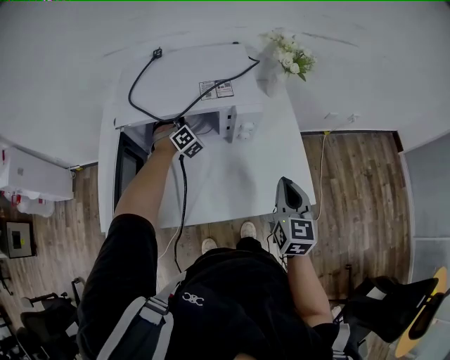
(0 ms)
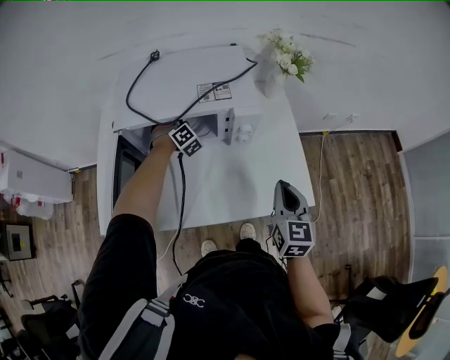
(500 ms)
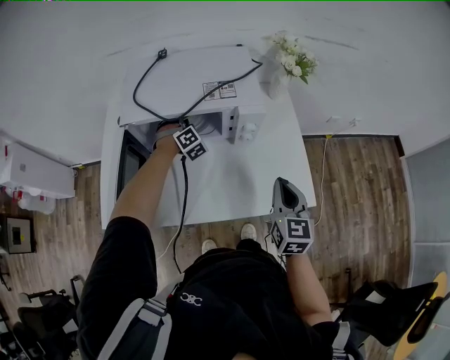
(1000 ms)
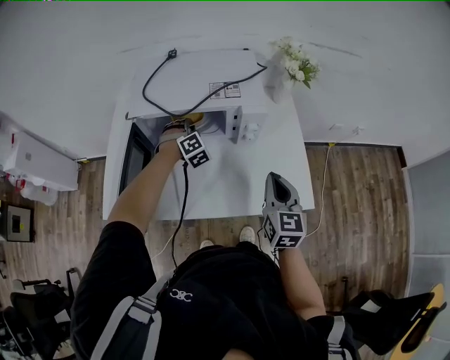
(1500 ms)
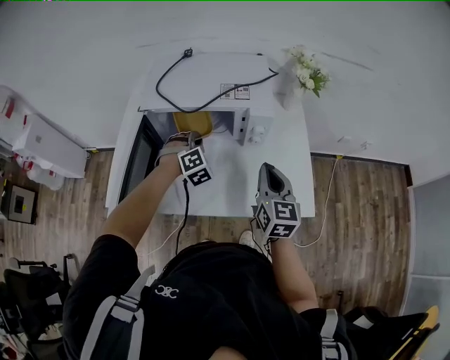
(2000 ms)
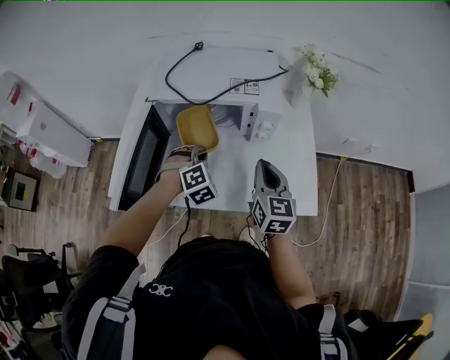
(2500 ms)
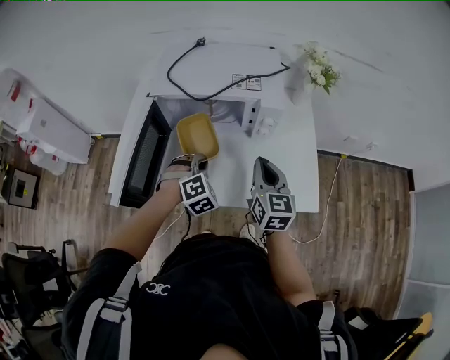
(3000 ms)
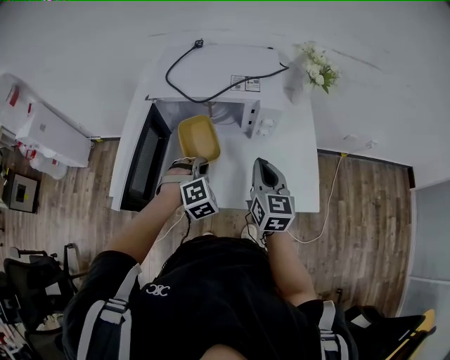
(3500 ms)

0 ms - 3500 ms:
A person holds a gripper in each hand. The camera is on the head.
0 ms - 2000 ms: The right gripper heads to the left, covering roughly 5 cm; the left gripper shifts approximately 15 cm backward, and closes up.
2000 ms - 3500 ms: The left gripper travels backward by some 10 cm.

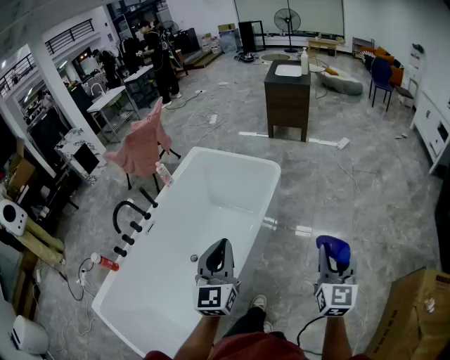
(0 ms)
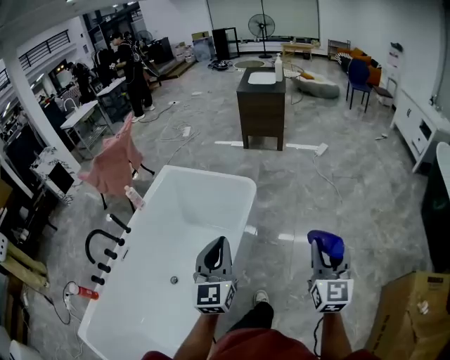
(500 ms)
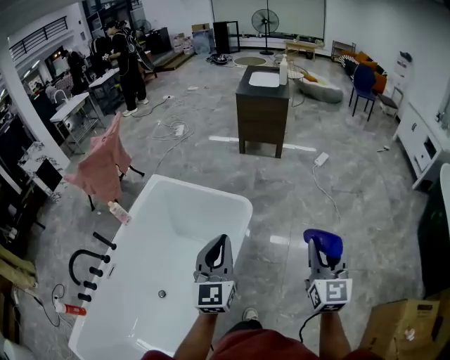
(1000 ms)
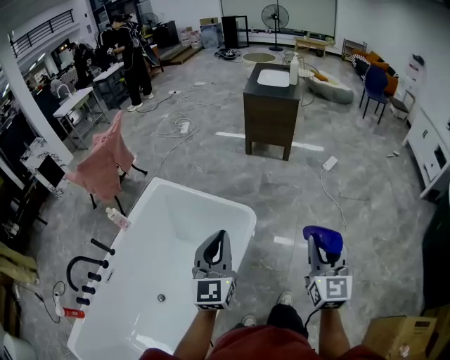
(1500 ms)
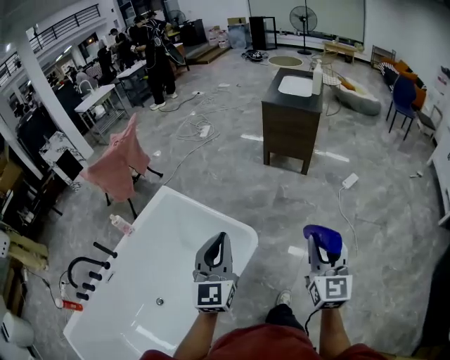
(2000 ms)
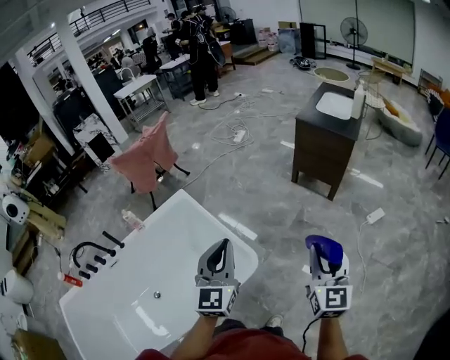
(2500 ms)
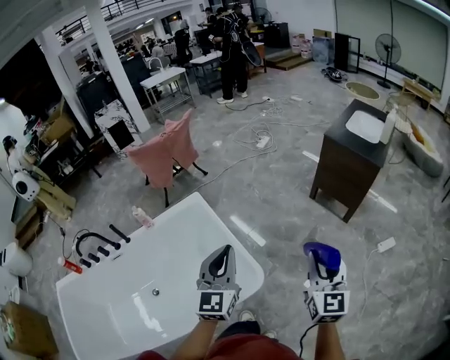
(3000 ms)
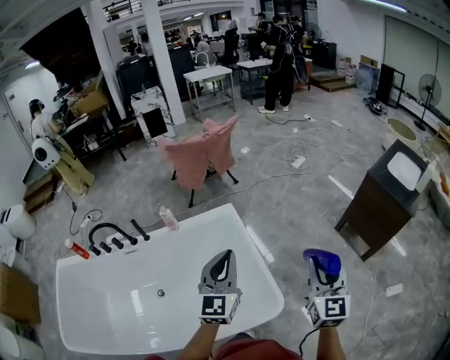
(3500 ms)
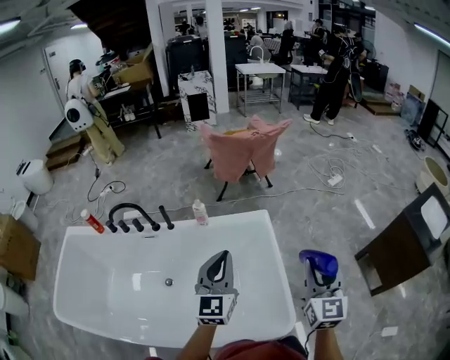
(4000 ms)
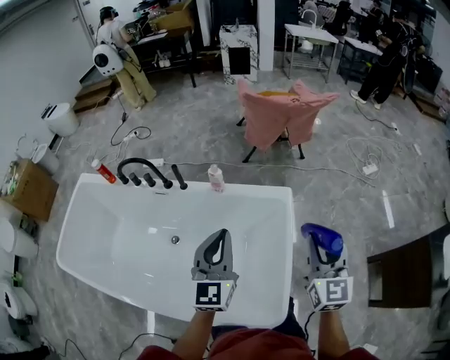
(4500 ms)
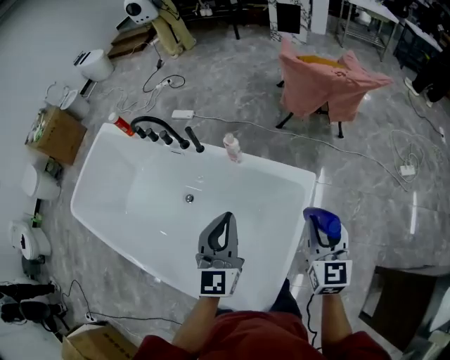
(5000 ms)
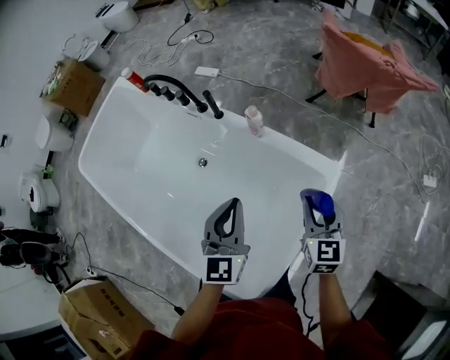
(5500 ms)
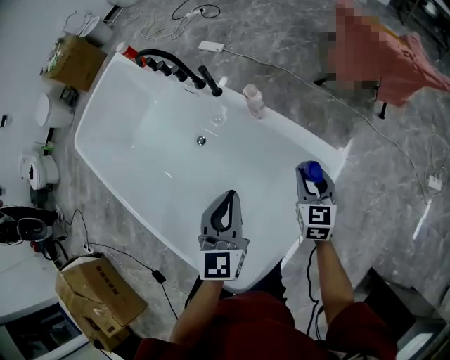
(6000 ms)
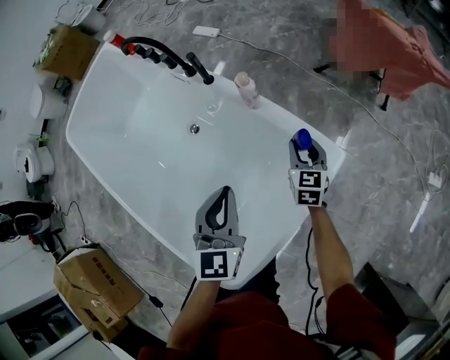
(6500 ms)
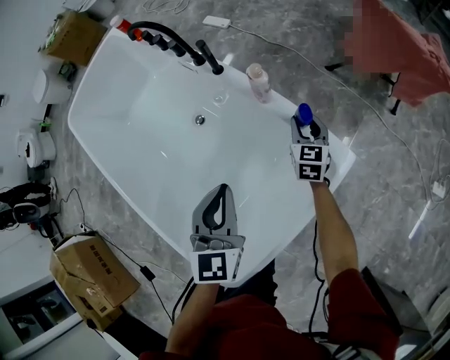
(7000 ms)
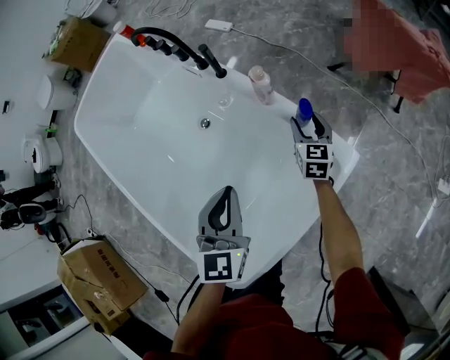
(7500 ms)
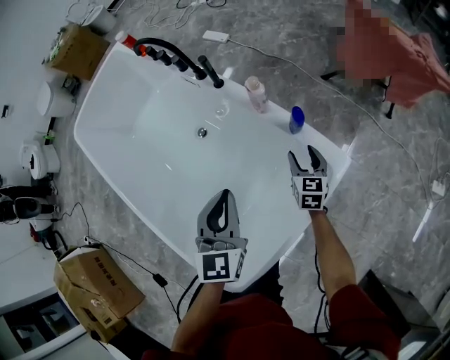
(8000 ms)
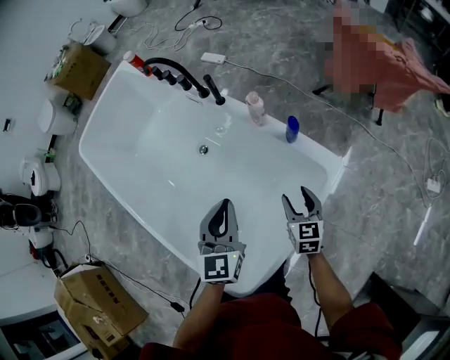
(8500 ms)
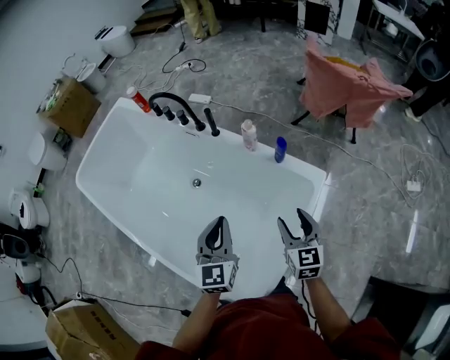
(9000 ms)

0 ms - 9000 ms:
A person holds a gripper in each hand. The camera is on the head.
0 ms - 2000 ms: The pair of grippers is taken forward, roughly 60 cm.
2000 ms - 4500 ms: The right gripper changes place by about 60 cm, and turns by approximately 70 degrees, while the left gripper changes place by about 40 cm, and turns by some 60 degrees.
4500 ms - 7000 ms: The right gripper heads downward, covering approximately 40 cm, and swivels some 40 degrees. The left gripper goes some 20 cm downward, and rotates some 40 degrees.
7000 ms - 9000 ms: The left gripper goes approximately 15 cm to the left, backward and upward, while the right gripper travels backward and upward by approximately 35 cm, and opens.

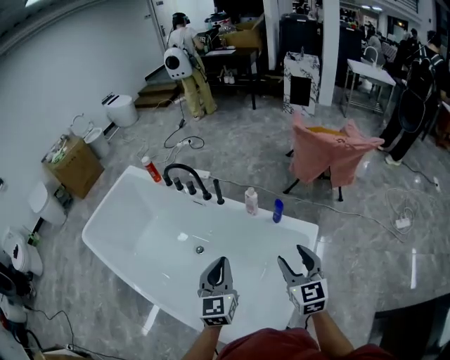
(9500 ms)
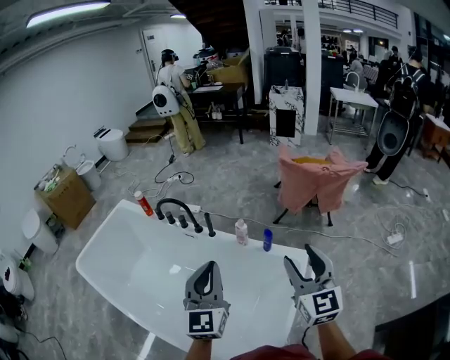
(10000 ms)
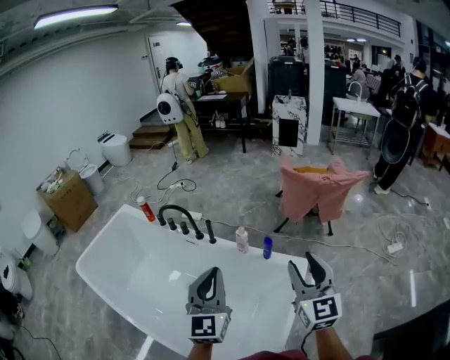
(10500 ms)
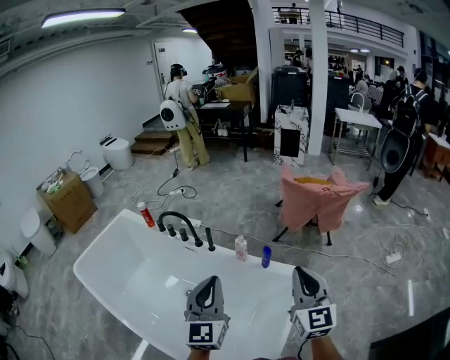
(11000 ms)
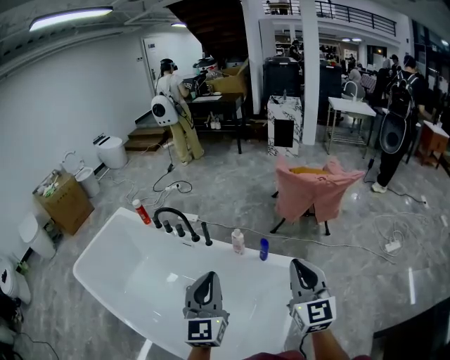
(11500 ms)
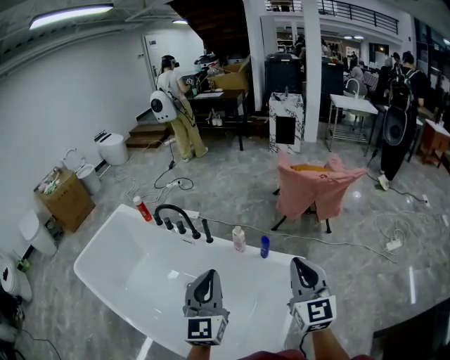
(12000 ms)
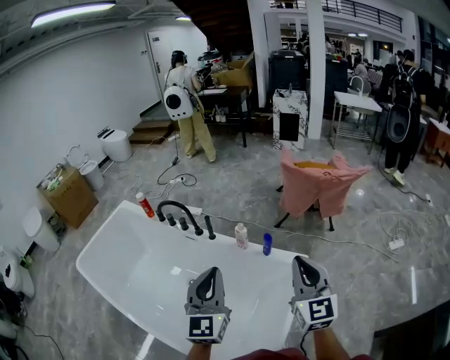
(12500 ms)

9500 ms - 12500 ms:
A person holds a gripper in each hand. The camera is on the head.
9500 ms - 11000 ms: Both grippers move upward, approximately 15 cm. The right gripper closes.
11000 ms - 12500 ms: The two grippers keep their place.

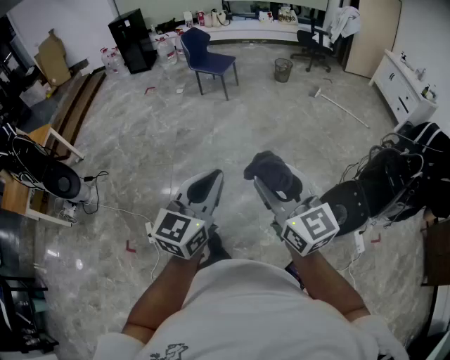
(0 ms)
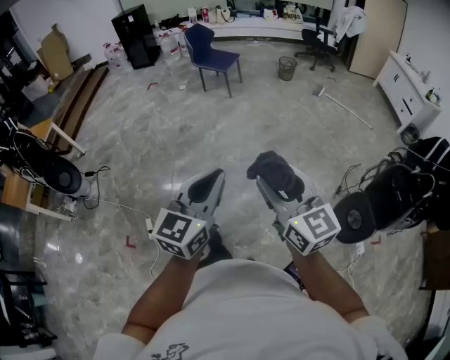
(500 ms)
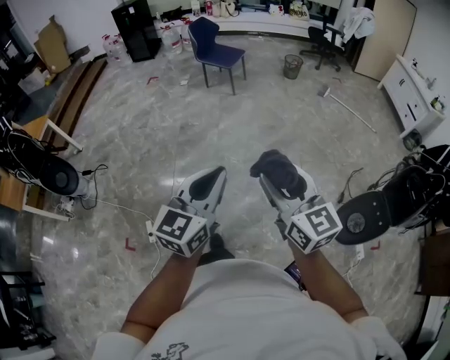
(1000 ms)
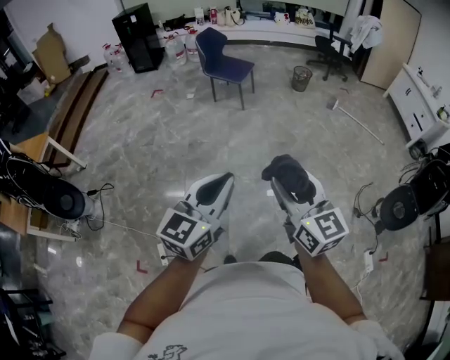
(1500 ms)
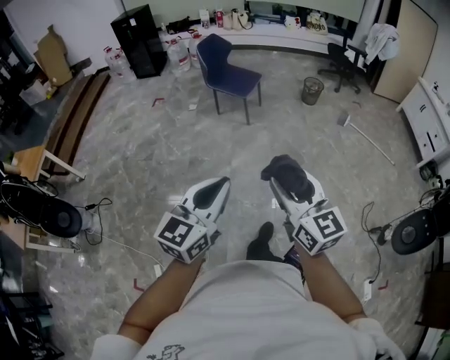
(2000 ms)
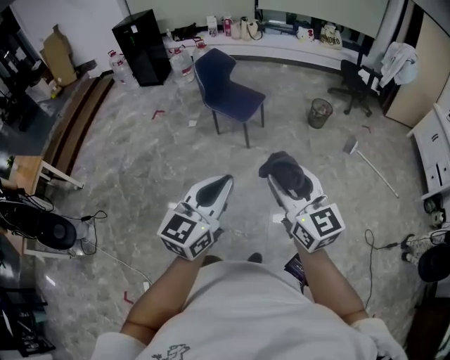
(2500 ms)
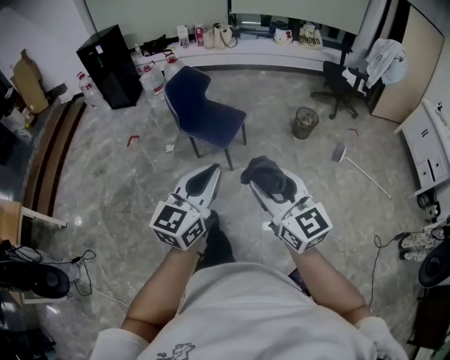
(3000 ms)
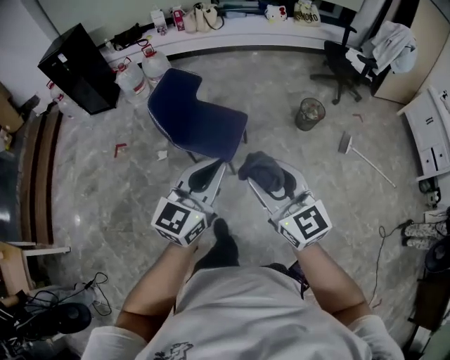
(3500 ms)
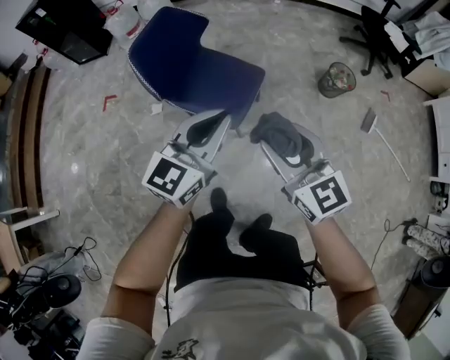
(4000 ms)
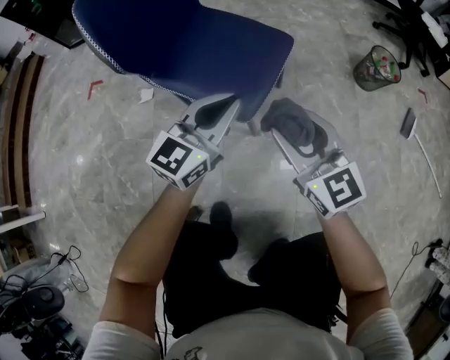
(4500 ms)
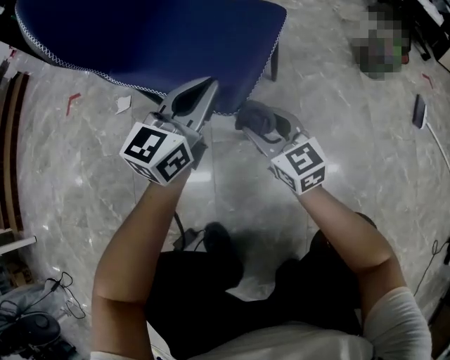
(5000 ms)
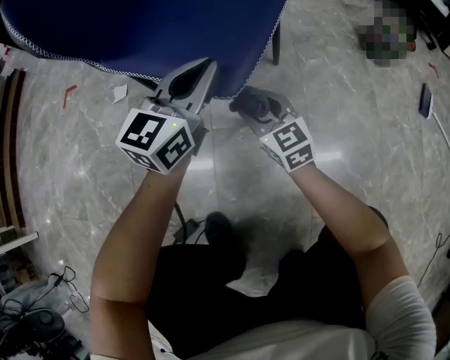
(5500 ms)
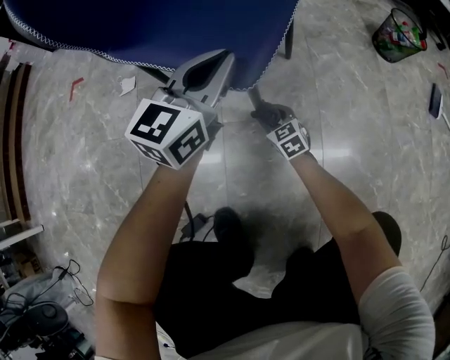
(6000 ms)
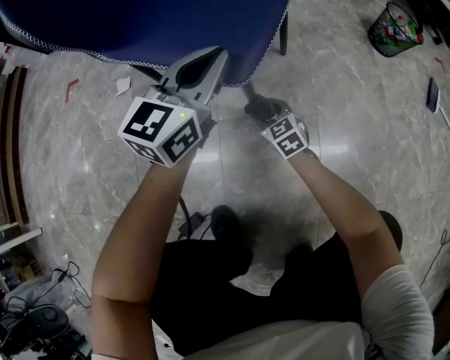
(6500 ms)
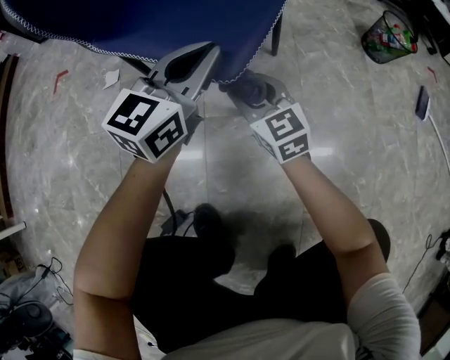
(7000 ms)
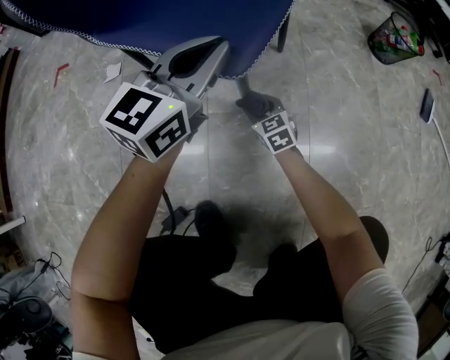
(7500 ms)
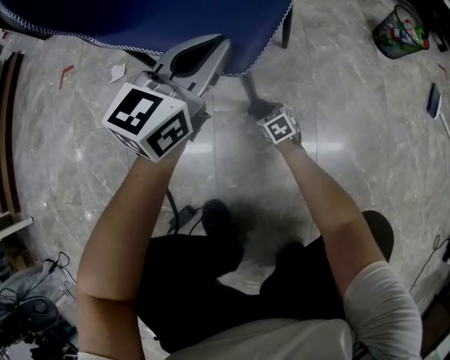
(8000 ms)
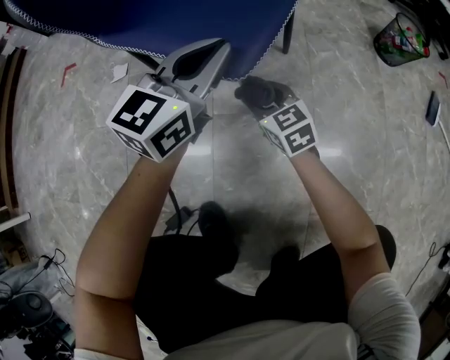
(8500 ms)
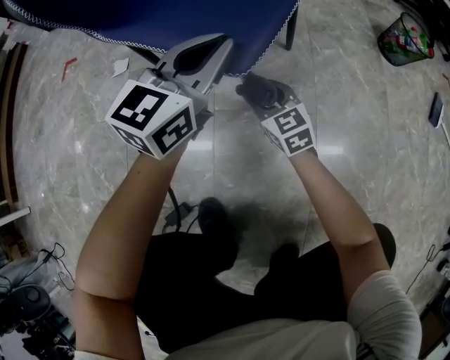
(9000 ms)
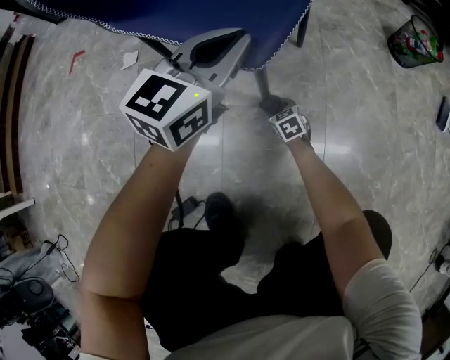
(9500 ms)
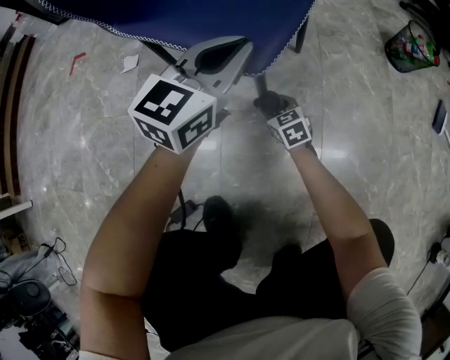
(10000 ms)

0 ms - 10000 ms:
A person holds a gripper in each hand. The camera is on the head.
0 ms - 2000 ms: The two grippers travel together, forward, roughly 50 cm.
2000 ms - 4000 ms: The two grippers travel together, forward, roughly 1 m.
4000 ms - 6000 ms: The right gripper heads downward, covering some 90 cm, and rotates about 30 degrees. Meanwhile the left gripper heads downward, covering approximately 60 cm.
6000 ms - 8000 ms: The right gripper travels upward and back again, approximately 20 cm each way.
8000 ms - 10000 ms: The right gripper moves up and down over roughly 25 cm, changing direction 2 times.

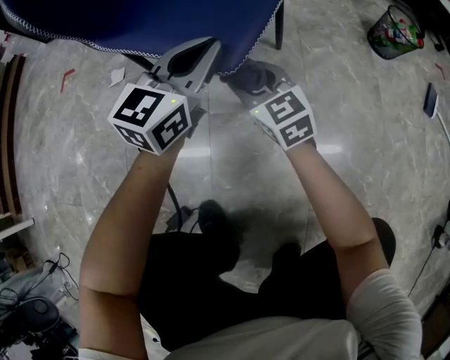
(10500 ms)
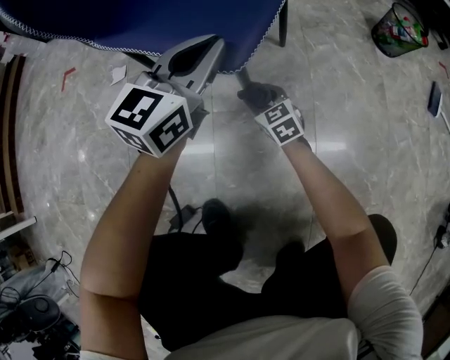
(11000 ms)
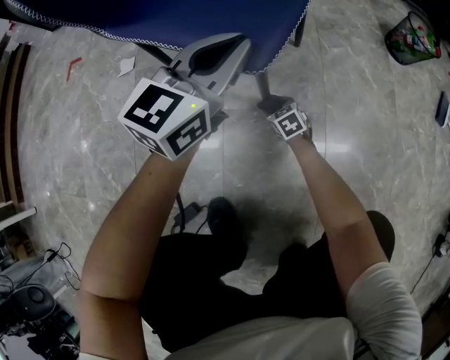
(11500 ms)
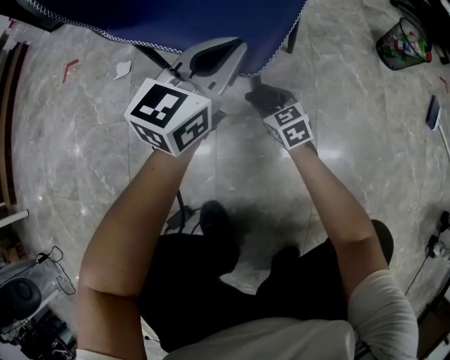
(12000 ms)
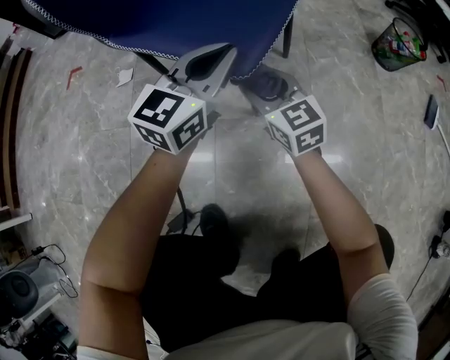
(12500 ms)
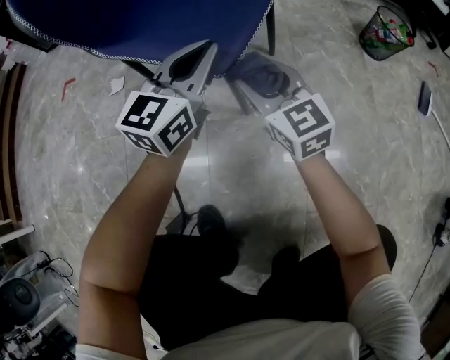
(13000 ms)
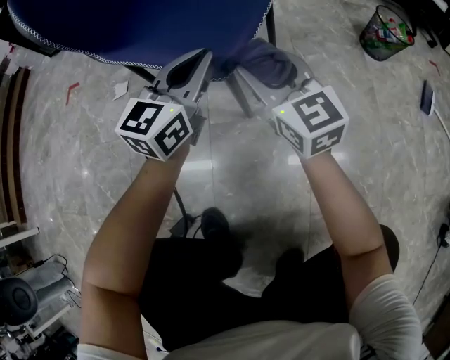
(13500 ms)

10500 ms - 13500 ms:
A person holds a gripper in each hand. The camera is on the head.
10500 ms - 12000 ms: The right gripper is displaced downward by roughly 15 cm.
12000 ms - 13500 ms: The right gripper goes roughly 25 cm upward, and swivels roughly 30 degrees.
